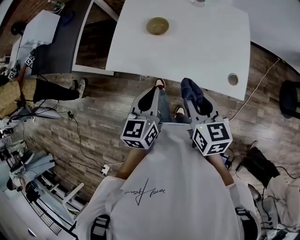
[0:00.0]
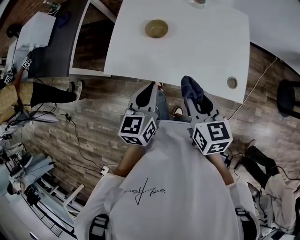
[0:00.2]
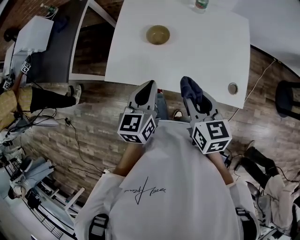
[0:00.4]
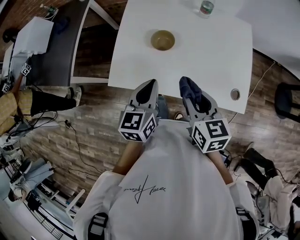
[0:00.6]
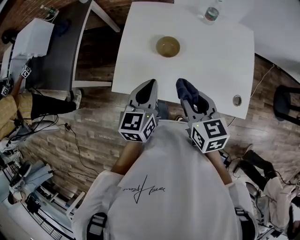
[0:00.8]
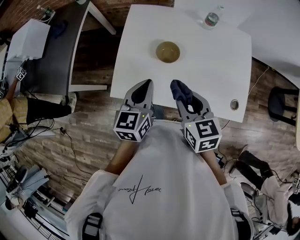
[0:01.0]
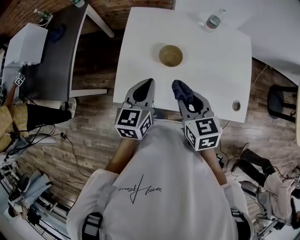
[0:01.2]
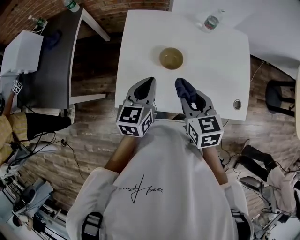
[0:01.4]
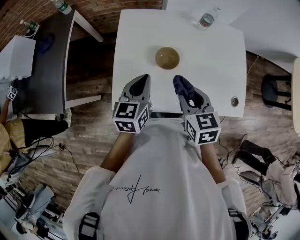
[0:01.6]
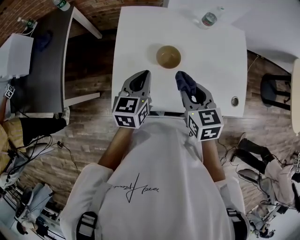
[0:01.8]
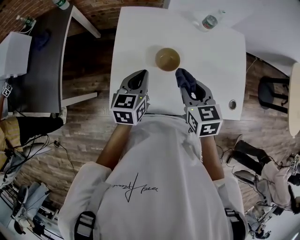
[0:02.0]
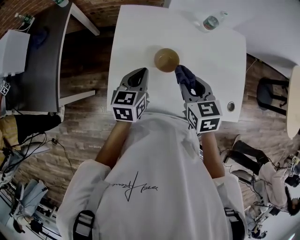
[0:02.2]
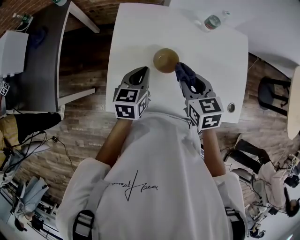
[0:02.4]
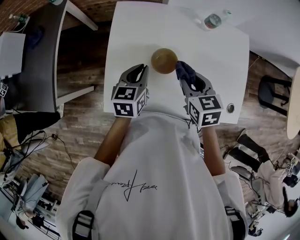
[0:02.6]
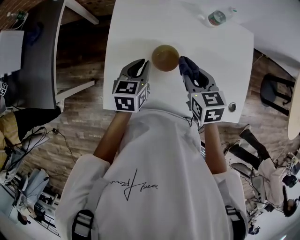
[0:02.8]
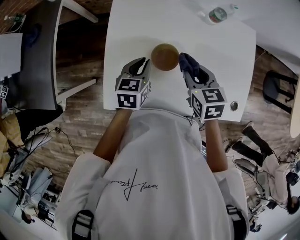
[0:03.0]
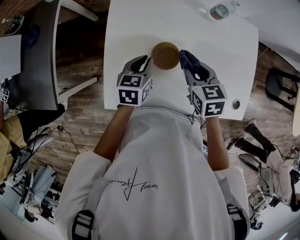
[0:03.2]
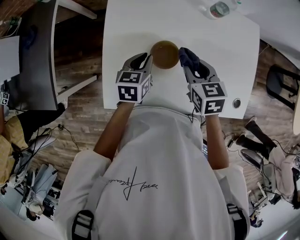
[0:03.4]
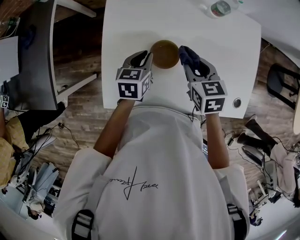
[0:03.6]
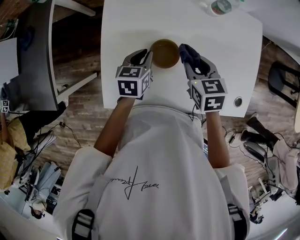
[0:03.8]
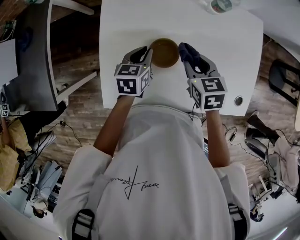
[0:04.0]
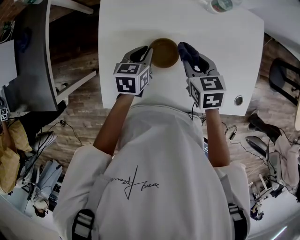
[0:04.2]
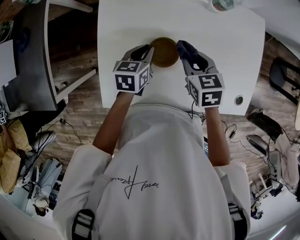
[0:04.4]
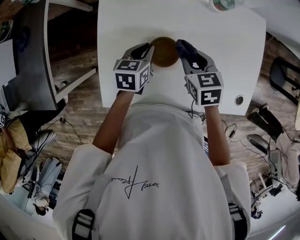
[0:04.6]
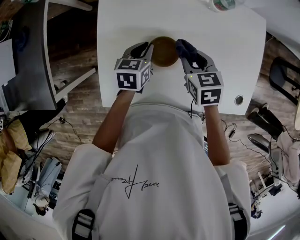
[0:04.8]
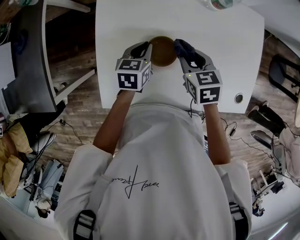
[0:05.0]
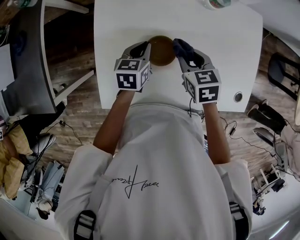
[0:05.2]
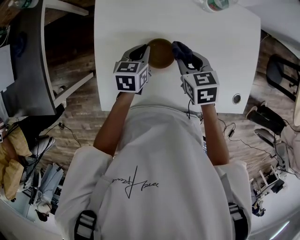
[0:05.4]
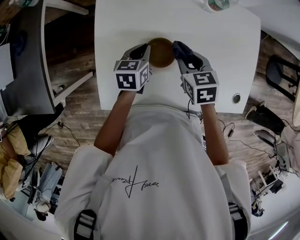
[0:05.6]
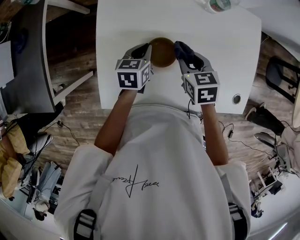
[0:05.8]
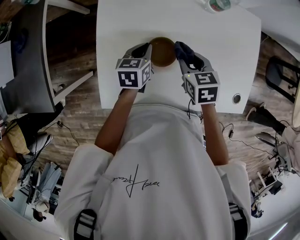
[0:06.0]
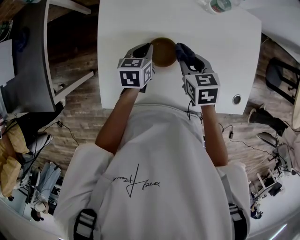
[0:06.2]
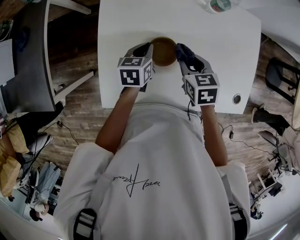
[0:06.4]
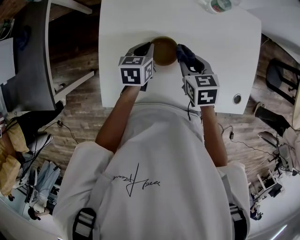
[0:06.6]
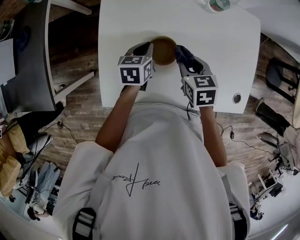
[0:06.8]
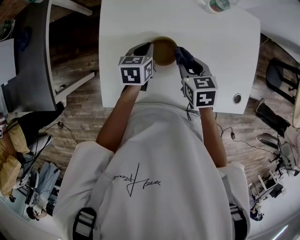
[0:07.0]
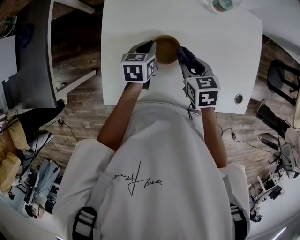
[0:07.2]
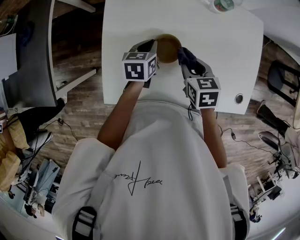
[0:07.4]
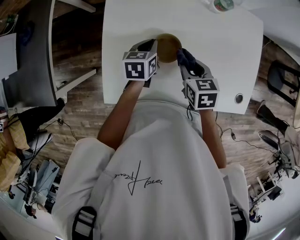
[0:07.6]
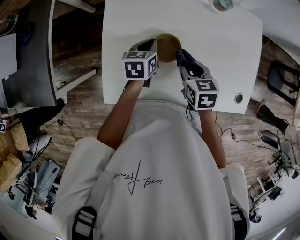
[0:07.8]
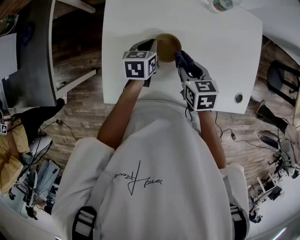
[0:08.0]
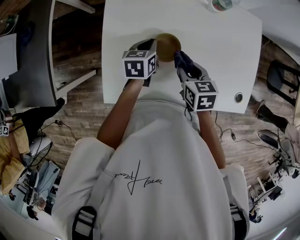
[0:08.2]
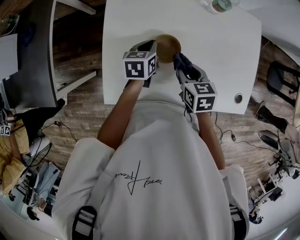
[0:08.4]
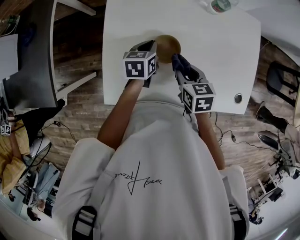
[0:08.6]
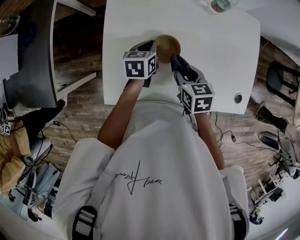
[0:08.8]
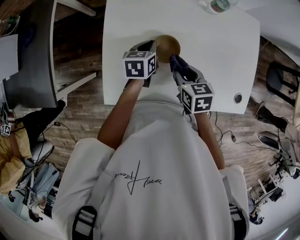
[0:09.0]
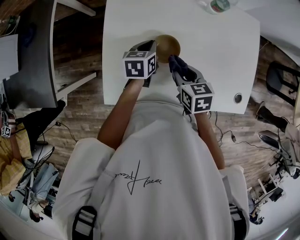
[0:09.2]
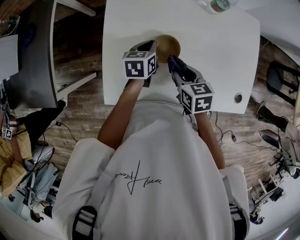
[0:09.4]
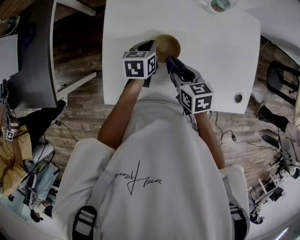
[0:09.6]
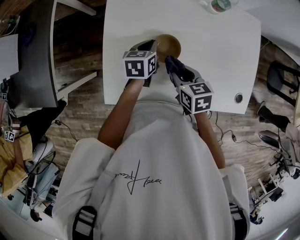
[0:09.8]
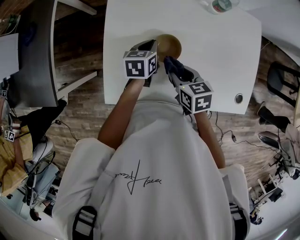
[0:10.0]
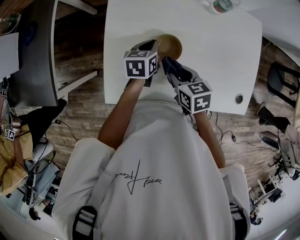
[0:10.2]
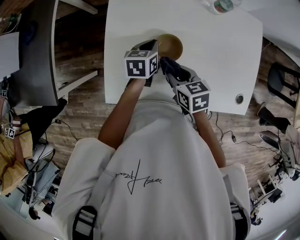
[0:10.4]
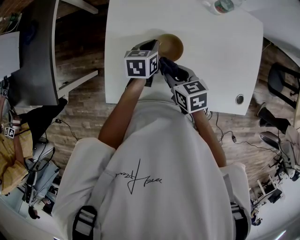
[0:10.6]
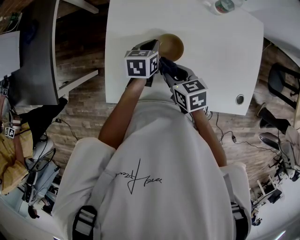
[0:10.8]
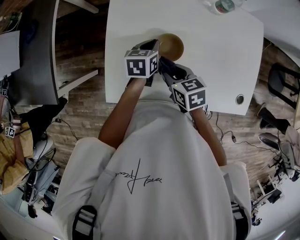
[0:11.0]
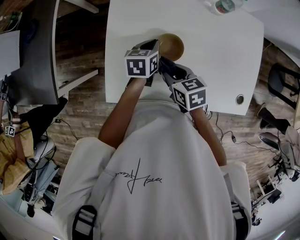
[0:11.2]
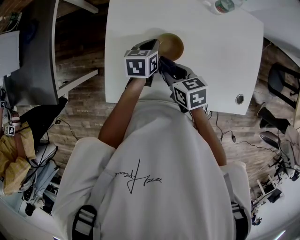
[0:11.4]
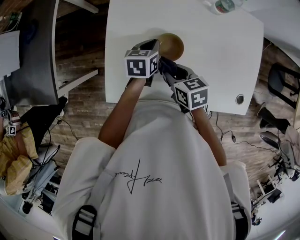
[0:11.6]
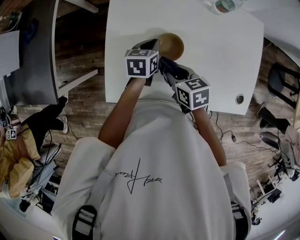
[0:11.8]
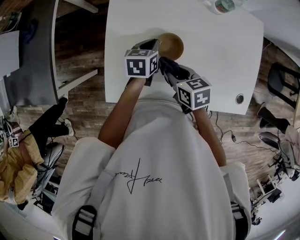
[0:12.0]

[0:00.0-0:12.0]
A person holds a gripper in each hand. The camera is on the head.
0.0 to 1.6 s: The two grippers go some 25 cm forward and to the left.
1.6 to 3.0 s: The left gripper is displaced downward and forward by approximately 15 cm, while the right gripper shifts about 15 cm forward and downward.
3.0 to 4.4 s: The grippers both shift downward by about 5 cm.
4.4 to 7.6 s: The grippers move only a little.
7.6 to 9.0 s: The grippers move only a little.
9.0 to 10.4 s: The grippers move only a little.
10.4 to 12.0 s: There are only small adjustments of the grippers.

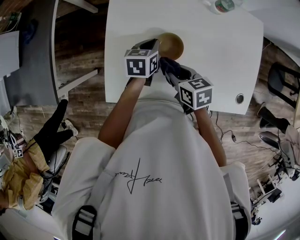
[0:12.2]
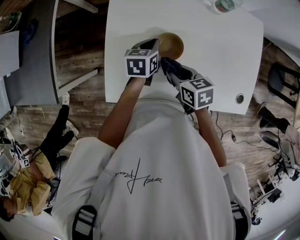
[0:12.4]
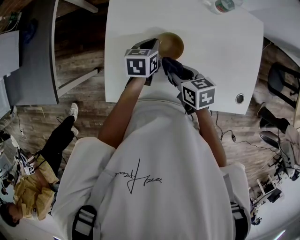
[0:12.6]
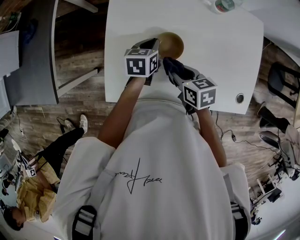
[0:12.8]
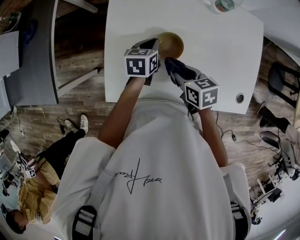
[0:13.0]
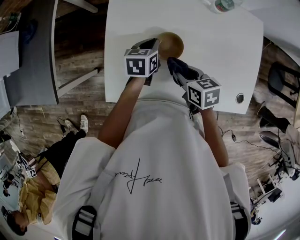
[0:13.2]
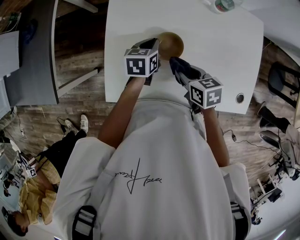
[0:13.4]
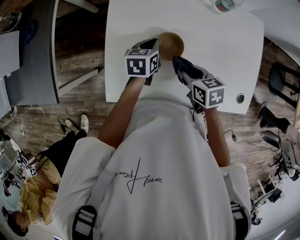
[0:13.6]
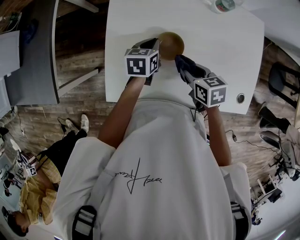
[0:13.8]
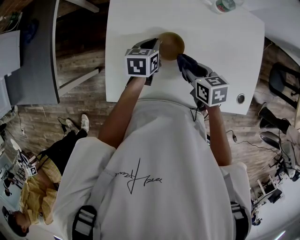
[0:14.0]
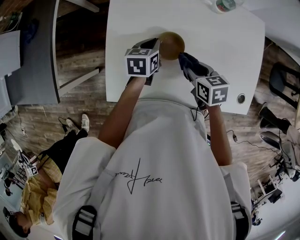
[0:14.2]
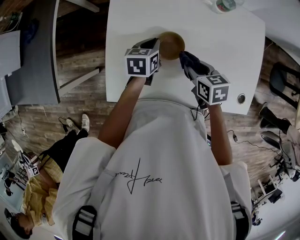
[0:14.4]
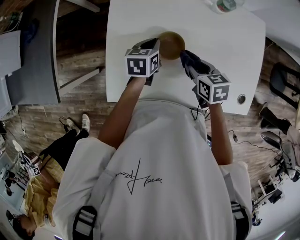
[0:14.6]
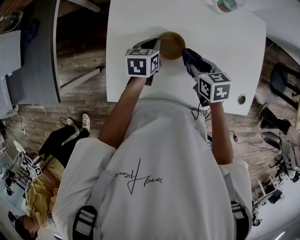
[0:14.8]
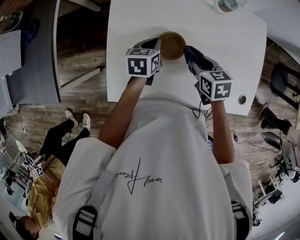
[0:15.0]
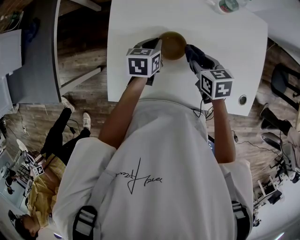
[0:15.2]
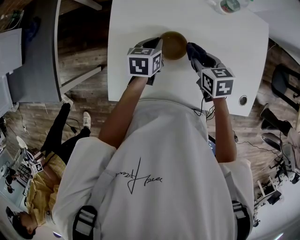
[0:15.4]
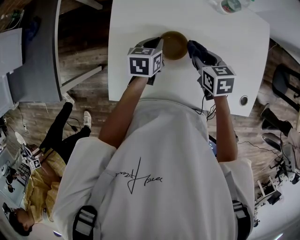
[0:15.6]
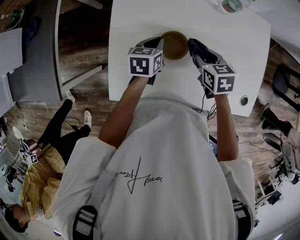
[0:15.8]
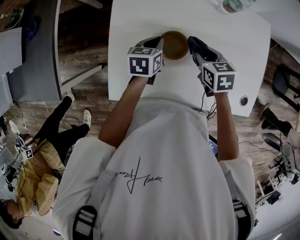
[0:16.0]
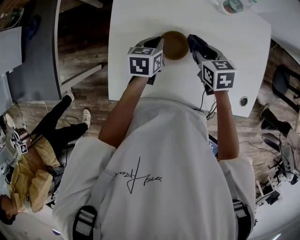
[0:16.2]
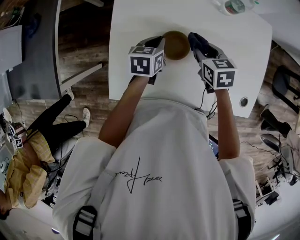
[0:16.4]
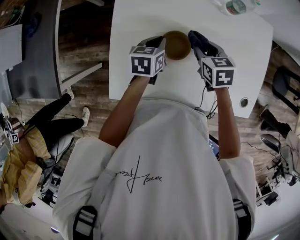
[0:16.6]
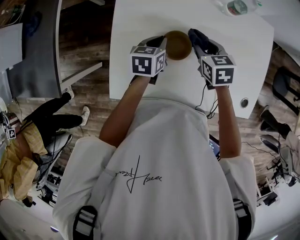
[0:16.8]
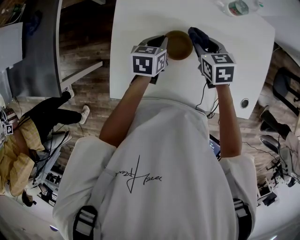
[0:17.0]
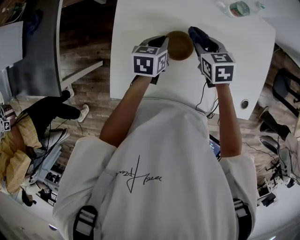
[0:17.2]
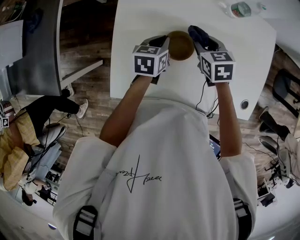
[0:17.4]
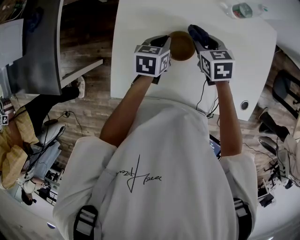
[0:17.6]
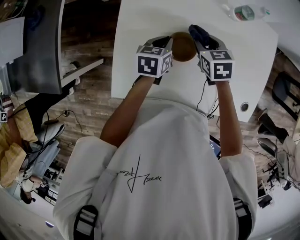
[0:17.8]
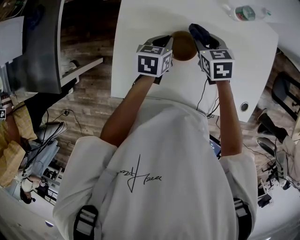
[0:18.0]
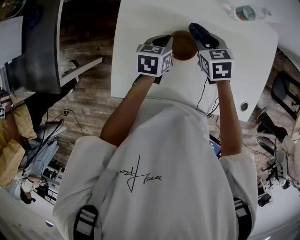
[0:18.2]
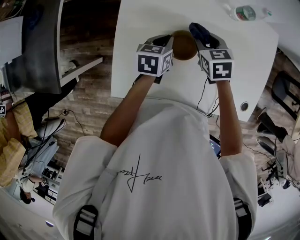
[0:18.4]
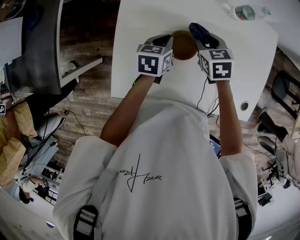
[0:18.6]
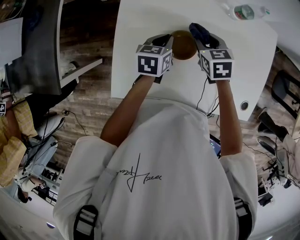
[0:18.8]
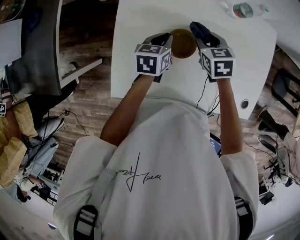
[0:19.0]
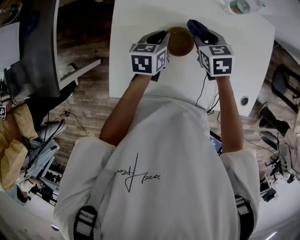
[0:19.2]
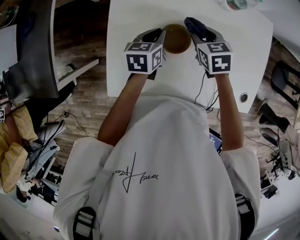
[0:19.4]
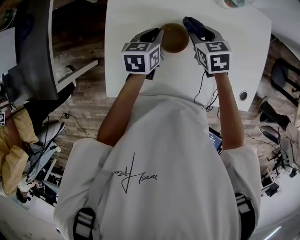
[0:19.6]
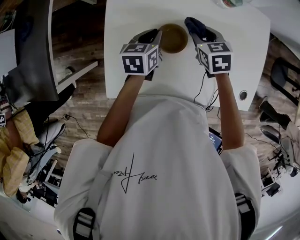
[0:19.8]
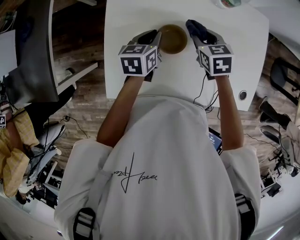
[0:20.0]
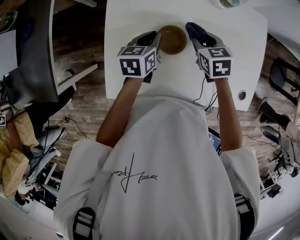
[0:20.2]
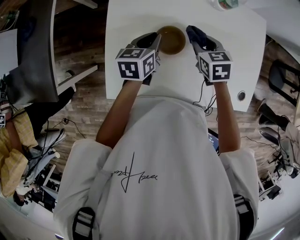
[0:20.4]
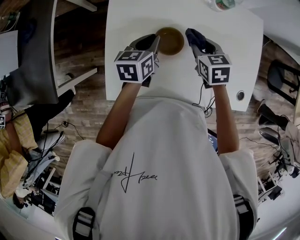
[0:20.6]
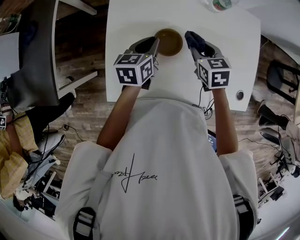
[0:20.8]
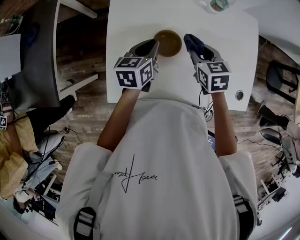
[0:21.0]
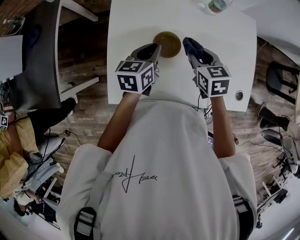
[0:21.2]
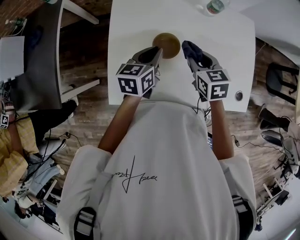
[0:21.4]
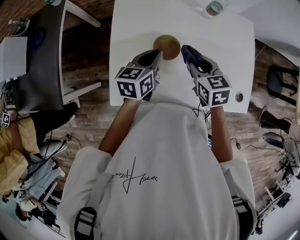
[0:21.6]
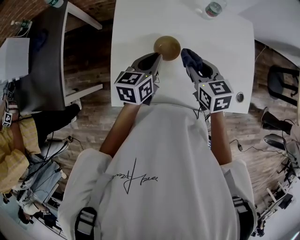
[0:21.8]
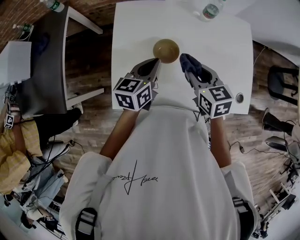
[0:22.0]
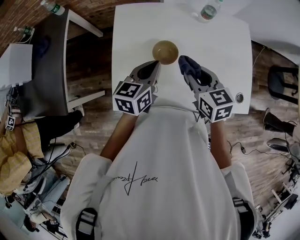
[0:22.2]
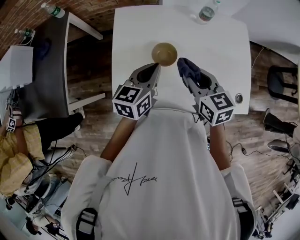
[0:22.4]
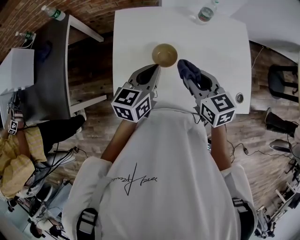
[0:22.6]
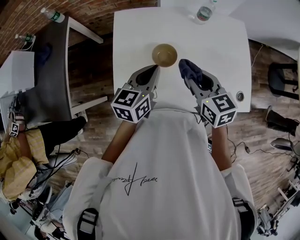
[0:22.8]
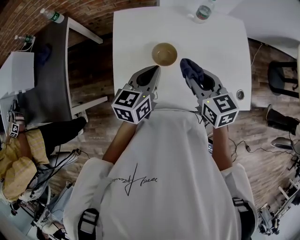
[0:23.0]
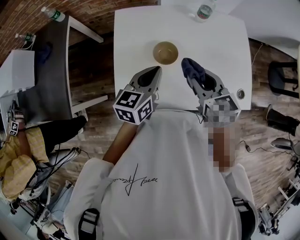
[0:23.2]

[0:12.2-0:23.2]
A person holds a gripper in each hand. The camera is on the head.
12.2 to 13.8 s: The right gripper heads to the right, covering about 5 cm.
13.8 to 15.4 s: The right gripper travels forward by approximately 5 cm.
15.4 to 17.0 s: The right gripper heads forward, covering roughly 5 cm.
17.0 to 20.0 s: The grippers stay close to where they were, moving slightly.
20.0 to 21.6 s: The left gripper heads upward and backward, covering some 10 cm. The right gripper shifts about 10 cm backward and upward.
21.6 to 23.2 s: The two grippers go about 10 cm upward and backward.

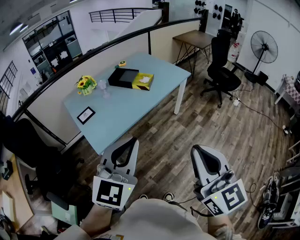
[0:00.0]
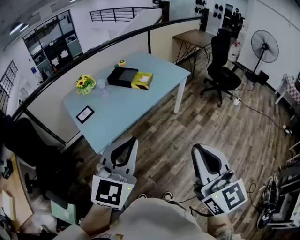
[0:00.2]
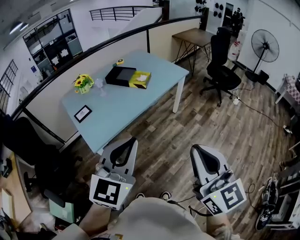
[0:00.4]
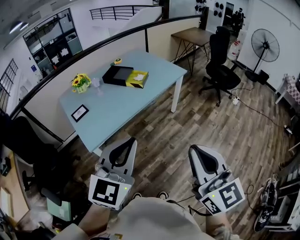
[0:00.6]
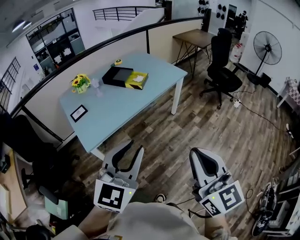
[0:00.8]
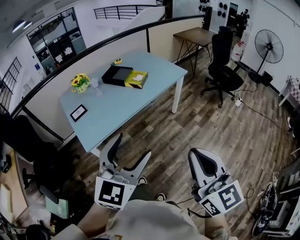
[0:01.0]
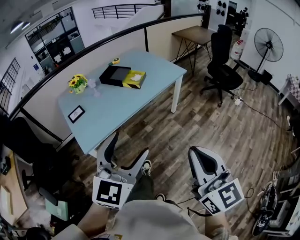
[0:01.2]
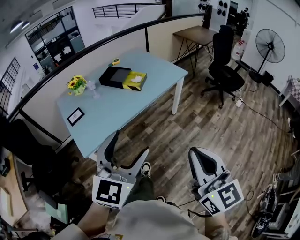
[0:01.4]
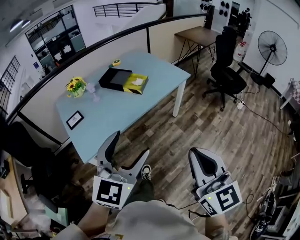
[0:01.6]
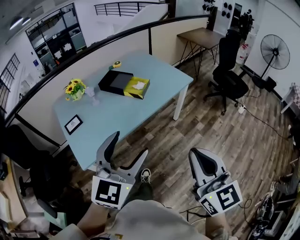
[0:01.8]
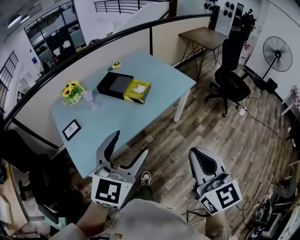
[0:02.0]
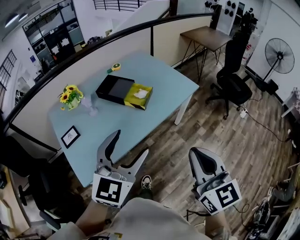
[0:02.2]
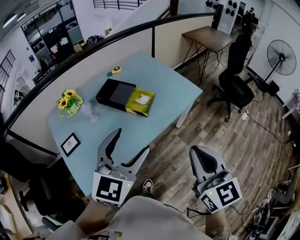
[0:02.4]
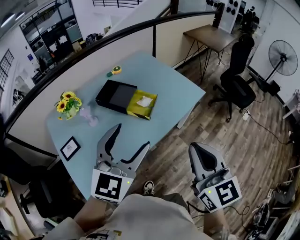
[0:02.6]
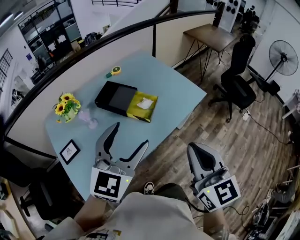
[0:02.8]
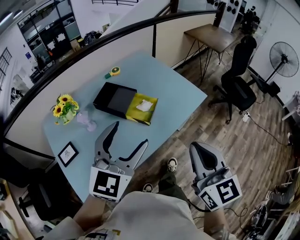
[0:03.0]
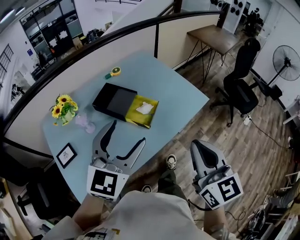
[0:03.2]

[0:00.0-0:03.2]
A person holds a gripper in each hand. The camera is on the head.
0.0 to 1.6 s: The two grippers go about 15 cm forward and to the right. The left gripper opens its fingers.
1.6 to 3.2 s: The pair of grippers is taken forward, some 40 cm.
